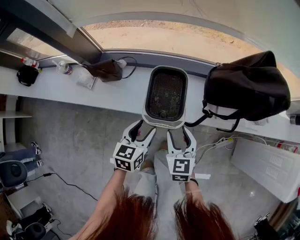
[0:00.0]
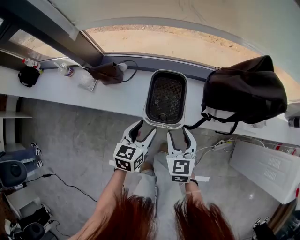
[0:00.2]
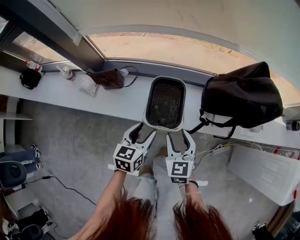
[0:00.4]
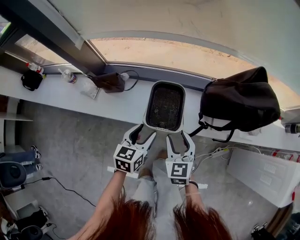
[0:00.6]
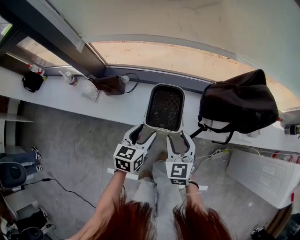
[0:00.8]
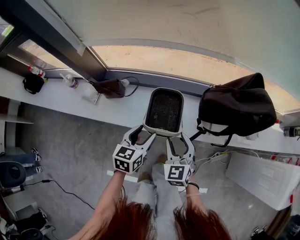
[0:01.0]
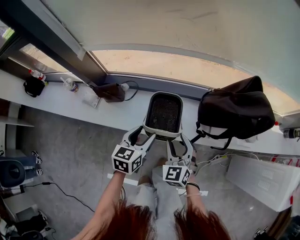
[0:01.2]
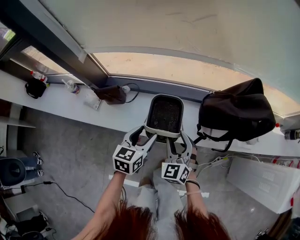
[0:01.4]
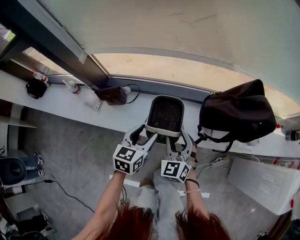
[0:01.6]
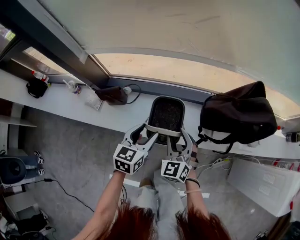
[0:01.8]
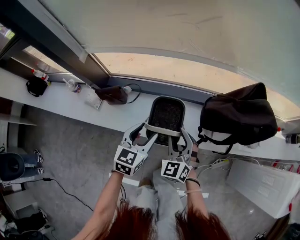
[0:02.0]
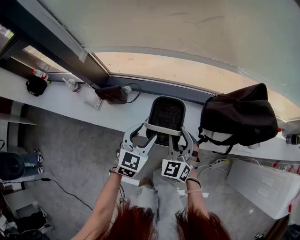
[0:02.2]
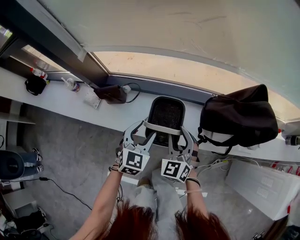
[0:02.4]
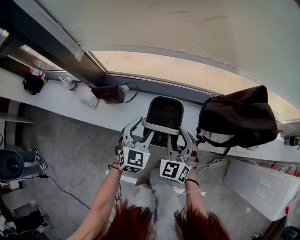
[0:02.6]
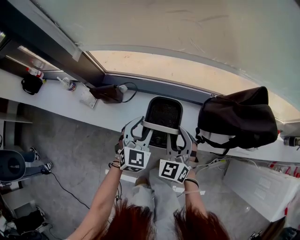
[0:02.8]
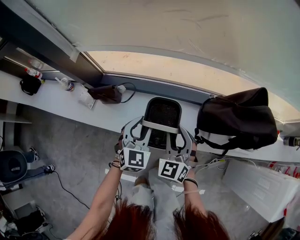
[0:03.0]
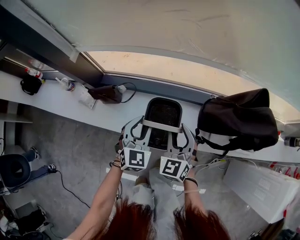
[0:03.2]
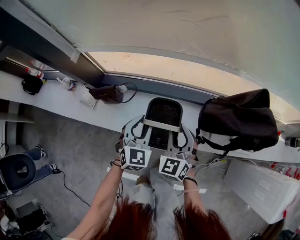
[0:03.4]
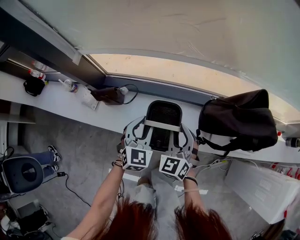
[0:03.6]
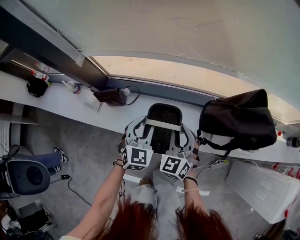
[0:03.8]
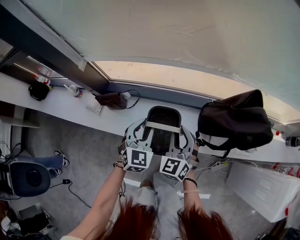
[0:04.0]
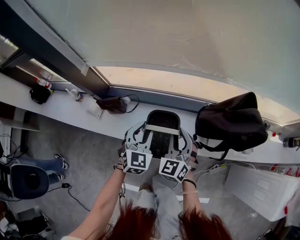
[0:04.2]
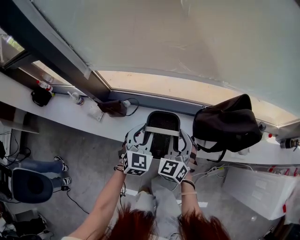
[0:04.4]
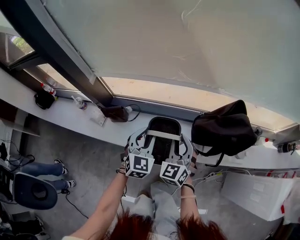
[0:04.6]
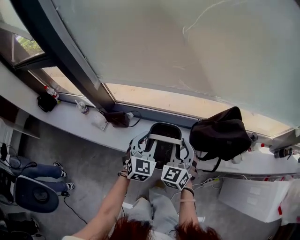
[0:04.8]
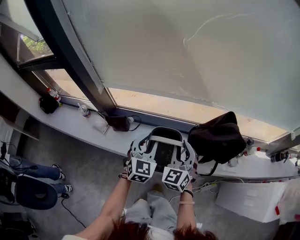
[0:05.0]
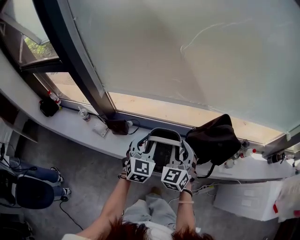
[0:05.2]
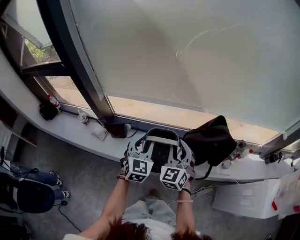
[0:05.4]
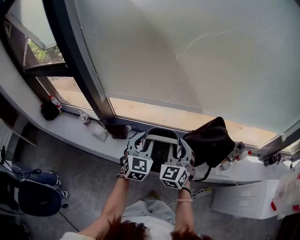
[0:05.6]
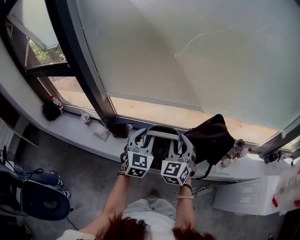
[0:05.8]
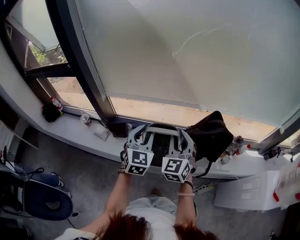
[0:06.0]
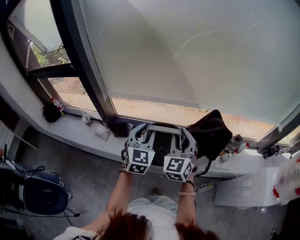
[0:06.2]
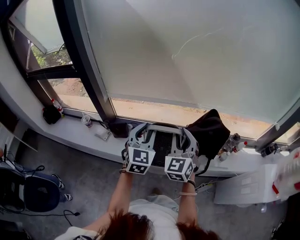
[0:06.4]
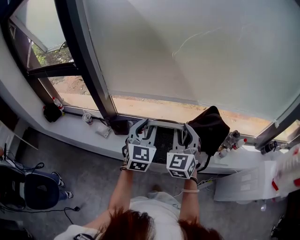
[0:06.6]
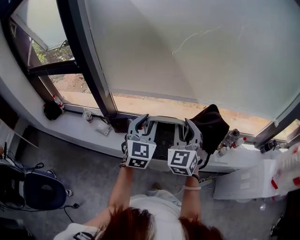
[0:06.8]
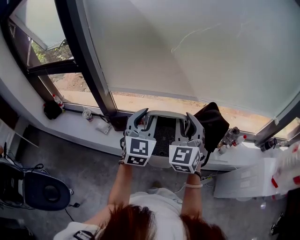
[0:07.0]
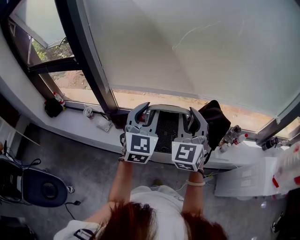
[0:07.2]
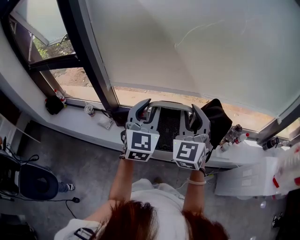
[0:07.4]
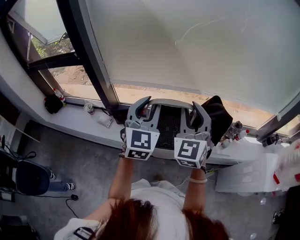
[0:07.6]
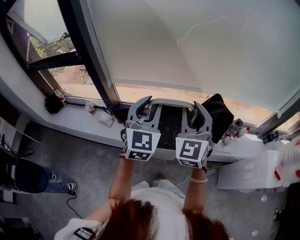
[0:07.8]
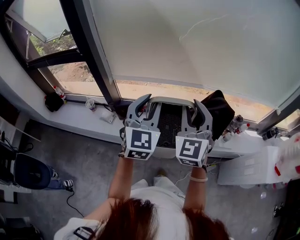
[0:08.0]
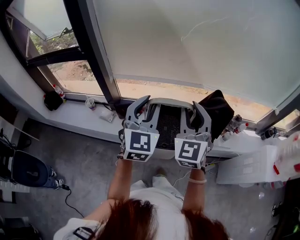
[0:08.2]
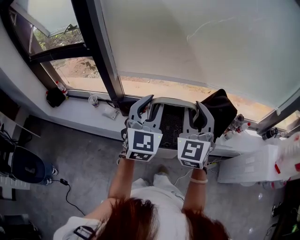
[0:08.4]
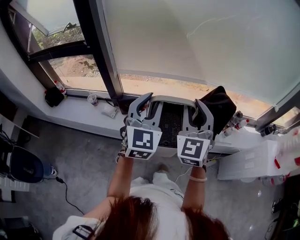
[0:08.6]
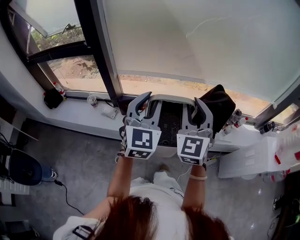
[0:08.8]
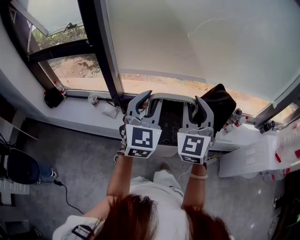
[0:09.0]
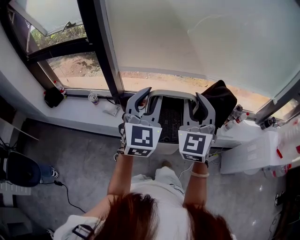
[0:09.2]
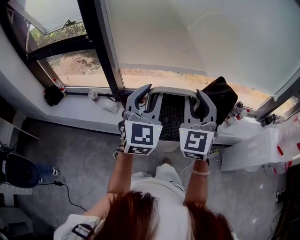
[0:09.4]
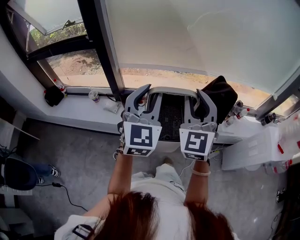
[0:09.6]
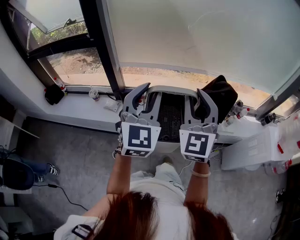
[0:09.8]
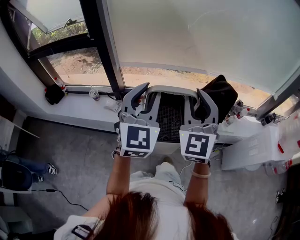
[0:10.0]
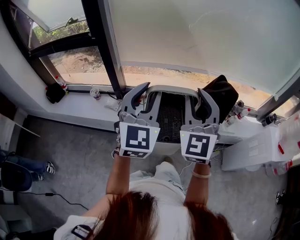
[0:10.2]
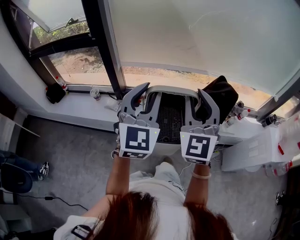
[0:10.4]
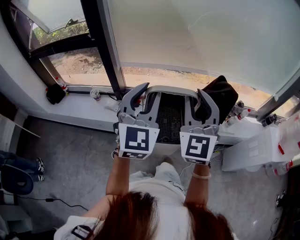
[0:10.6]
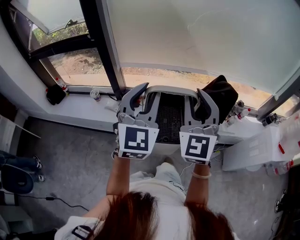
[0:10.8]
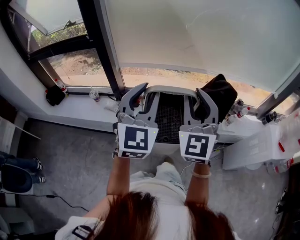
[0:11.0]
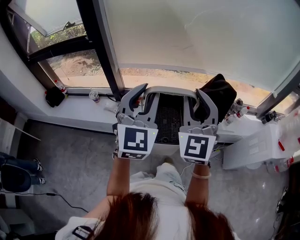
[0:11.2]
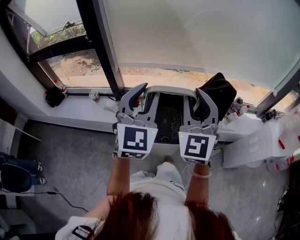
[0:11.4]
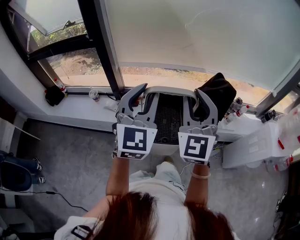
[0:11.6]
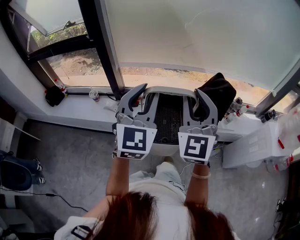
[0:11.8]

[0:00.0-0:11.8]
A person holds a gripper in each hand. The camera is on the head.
0:00.0 to 0:01.4: The left gripper moves upward and forward, about 10 cm. Meanwhile the right gripper heads forward and upward, covering some 10 cm, and swivels approximately 30 degrees.
0:01.4 to 0:03.0: Both grippers move forward, approximately 5 cm. The left gripper swivels some 40 degrees, and closes up.
0:03.0 to 0:04.4: The grippers both shift upward by about 10 cm.
0:04.4 to 0:06.0: The grippers both shift upward by approximately 20 cm.
0:06.0 to 0:07.4: The two grippers go approximately 15 cm upward and backward.
0:07.4 to 0:08.8: Both grippers travel together backward and to the left, approximately 15 cm.
0:08.8 to 0:10.4: The two grippers go some 5 cm backward.
0:10.4 to 0:11.8: The grippers make only small movements.

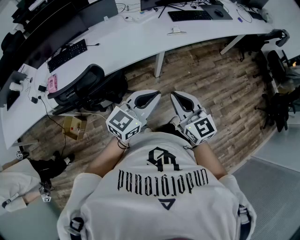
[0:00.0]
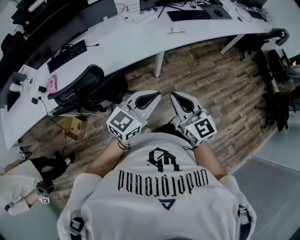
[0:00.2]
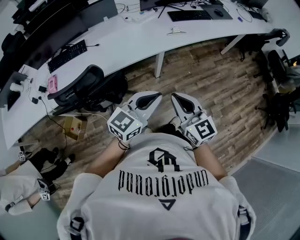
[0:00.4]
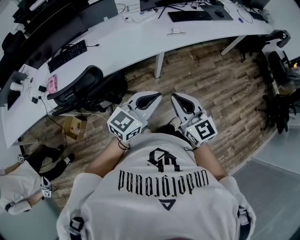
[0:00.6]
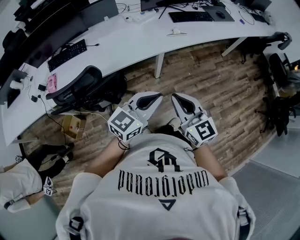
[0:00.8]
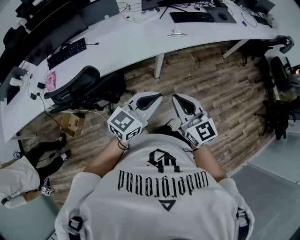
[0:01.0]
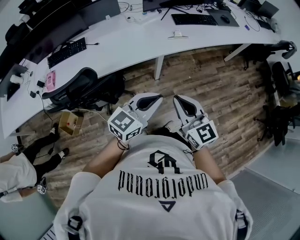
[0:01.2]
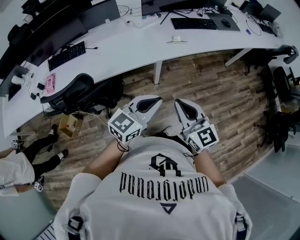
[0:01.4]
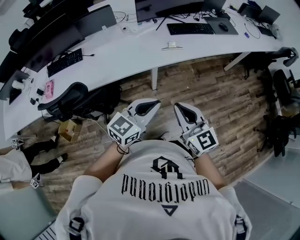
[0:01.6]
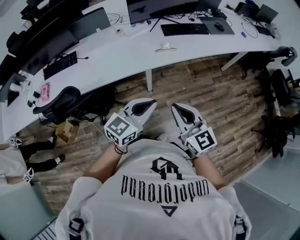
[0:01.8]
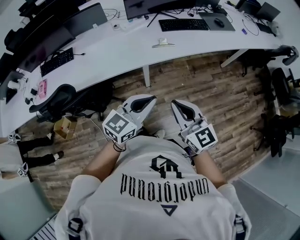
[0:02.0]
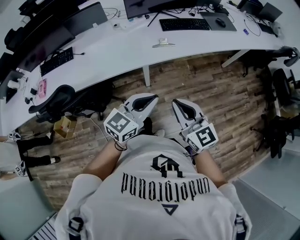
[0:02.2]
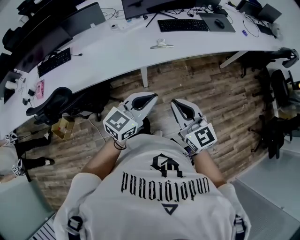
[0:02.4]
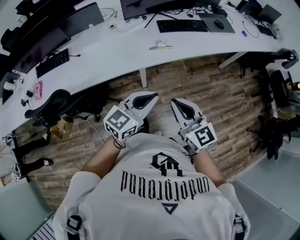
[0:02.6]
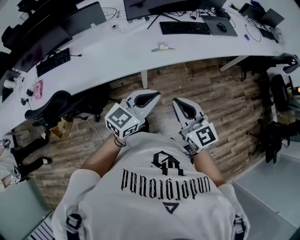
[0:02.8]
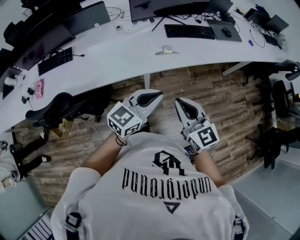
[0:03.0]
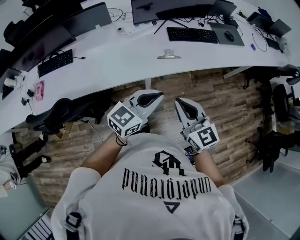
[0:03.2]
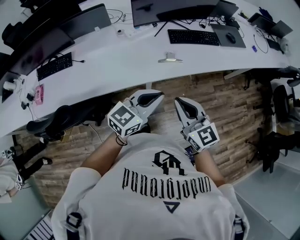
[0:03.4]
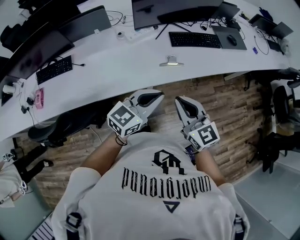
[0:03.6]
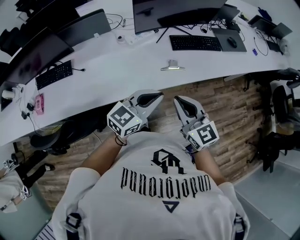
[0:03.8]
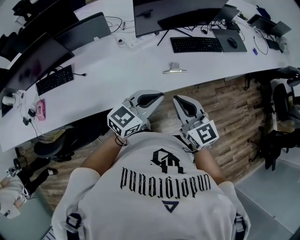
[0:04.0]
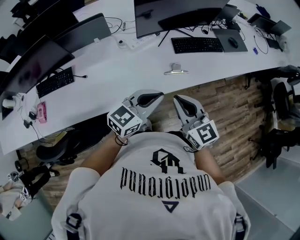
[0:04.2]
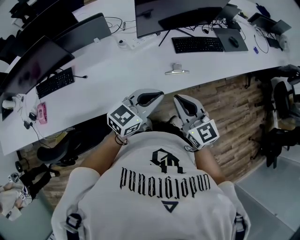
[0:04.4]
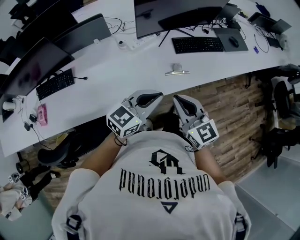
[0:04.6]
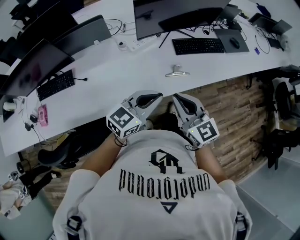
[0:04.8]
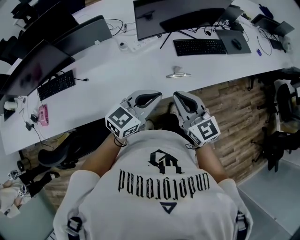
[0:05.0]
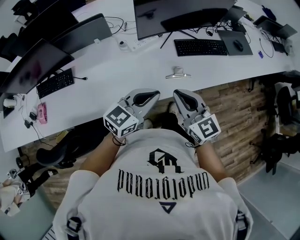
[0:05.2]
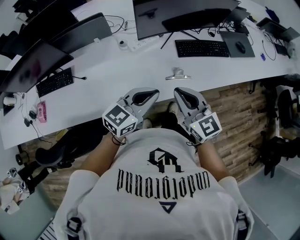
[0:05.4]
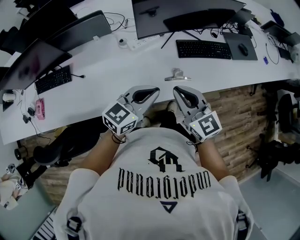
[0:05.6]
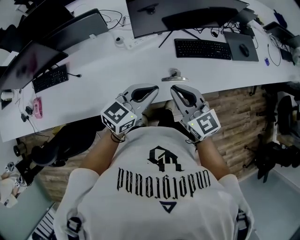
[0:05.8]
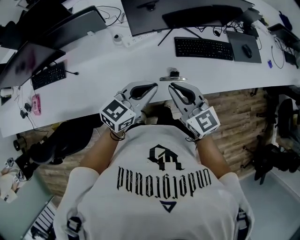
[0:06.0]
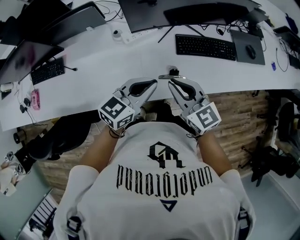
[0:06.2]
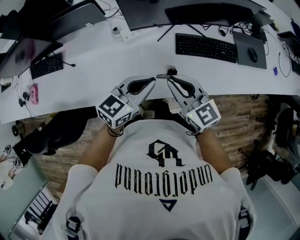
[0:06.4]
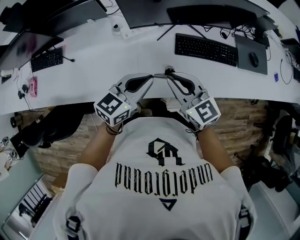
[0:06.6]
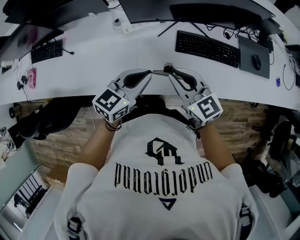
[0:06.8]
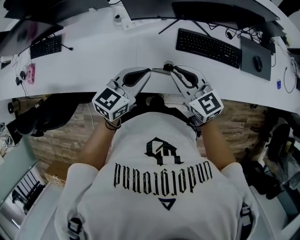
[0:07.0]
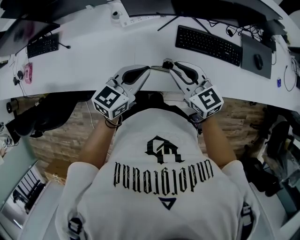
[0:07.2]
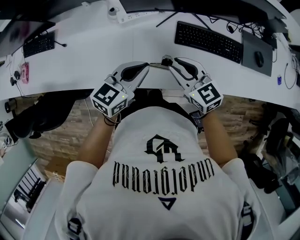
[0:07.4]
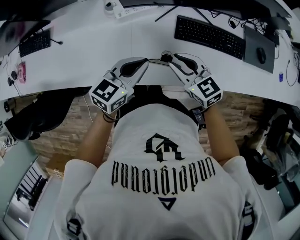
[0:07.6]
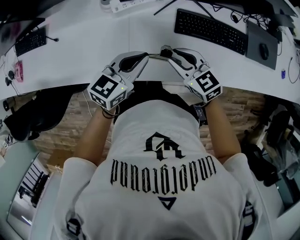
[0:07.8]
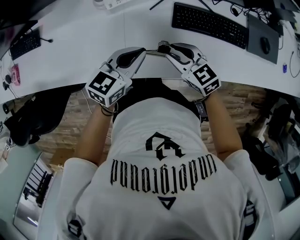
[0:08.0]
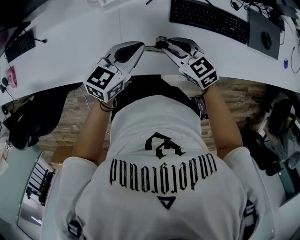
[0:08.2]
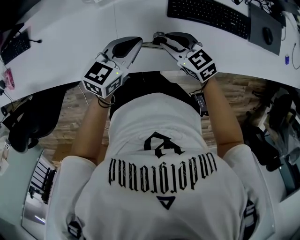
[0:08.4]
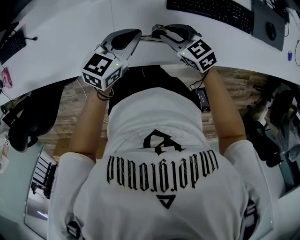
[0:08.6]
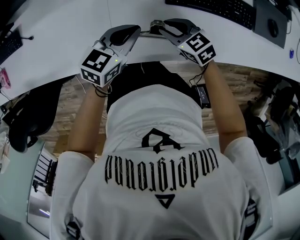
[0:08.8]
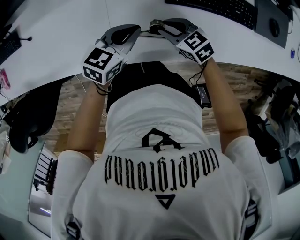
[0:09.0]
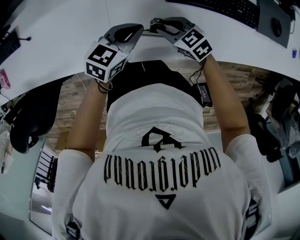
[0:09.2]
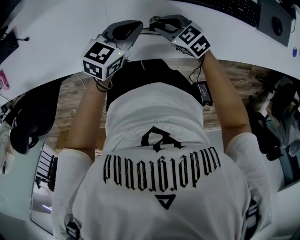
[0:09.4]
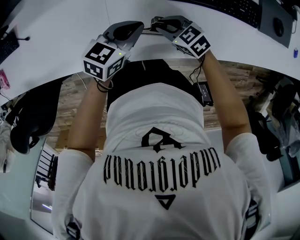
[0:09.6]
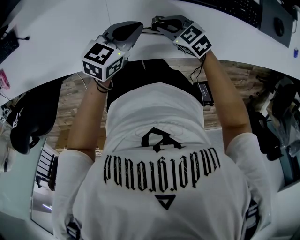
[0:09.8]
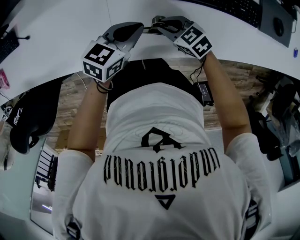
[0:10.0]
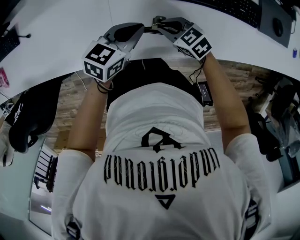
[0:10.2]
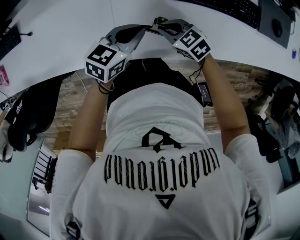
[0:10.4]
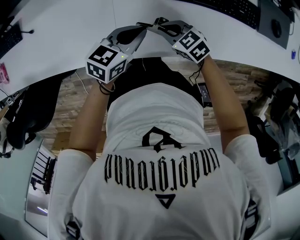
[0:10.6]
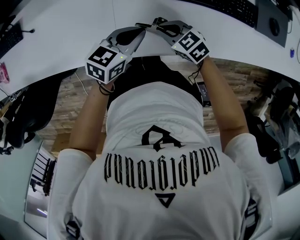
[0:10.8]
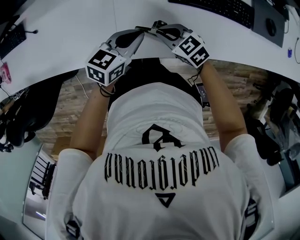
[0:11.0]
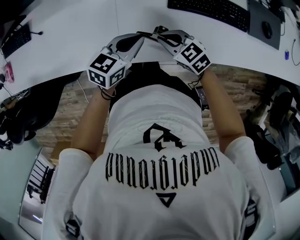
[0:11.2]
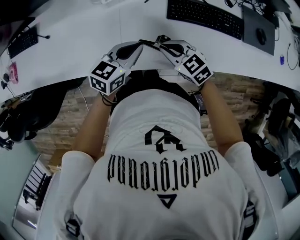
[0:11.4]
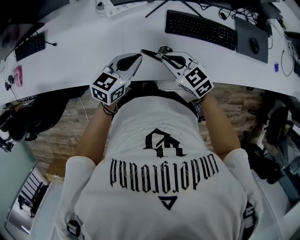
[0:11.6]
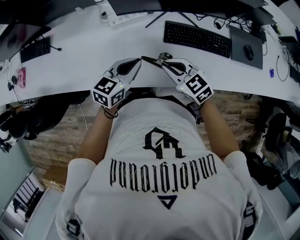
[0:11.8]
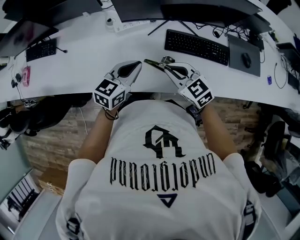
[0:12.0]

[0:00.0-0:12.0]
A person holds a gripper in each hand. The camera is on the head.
0:00.0 to 0:01.6: The grippers both shift to the right and forward by roughly 15 cm.
0:01.6 to 0:03.0: Both grippers travel together forward, some 15 cm.
0:03.0 to 0:04.4: The grippers both shift forward and to the left by about 20 cm.
0:04.4 to 0:06.0: The grippers both shift forward by approximately 15 cm.
0:06.0 to 0:07.6: The left gripper travels downward and forward by roughly 10 cm. Meanwhile the right gripper goes approximately 20 cm downward, forward and to the right, and changes its angle by roughly 20 degrees.
0:07.6 to 0:09.0: The grippers both shift downward by roughly 15 cm.
0:09.0 to 0:10.4: There are only small adjustments of the grippers.
0:10.4 to 0:12.0: Both grippers move upward, roughly 20 cm. The right gripper changes its angle by roughly 30 degrees; the left gripper rotates about 20 degrees.
